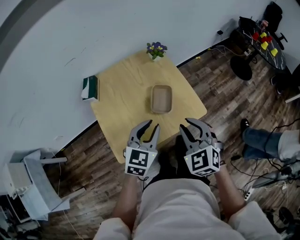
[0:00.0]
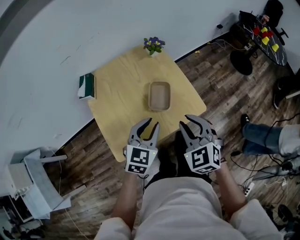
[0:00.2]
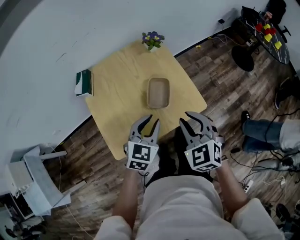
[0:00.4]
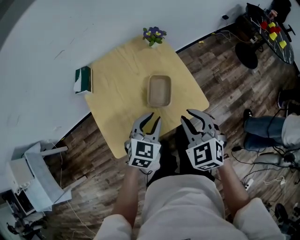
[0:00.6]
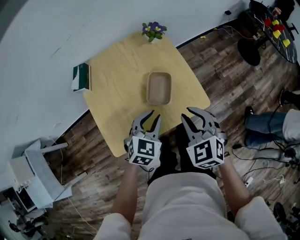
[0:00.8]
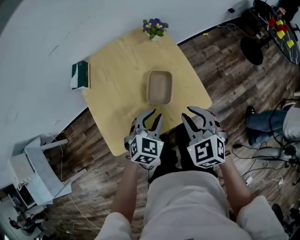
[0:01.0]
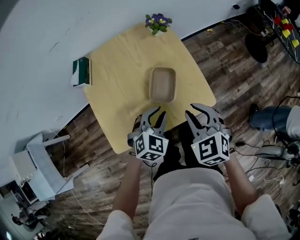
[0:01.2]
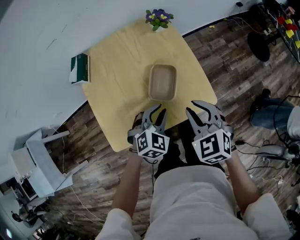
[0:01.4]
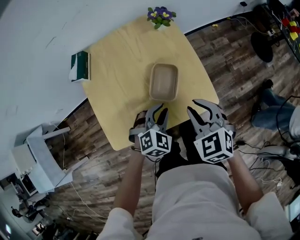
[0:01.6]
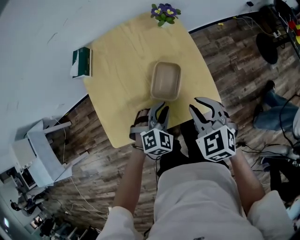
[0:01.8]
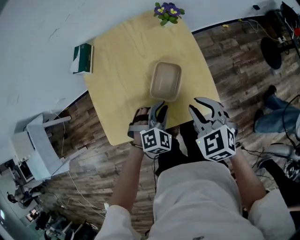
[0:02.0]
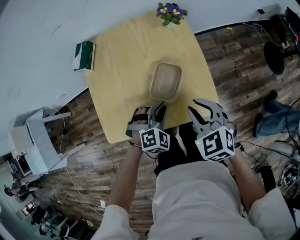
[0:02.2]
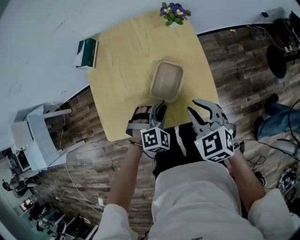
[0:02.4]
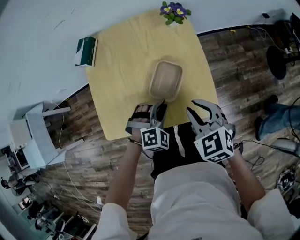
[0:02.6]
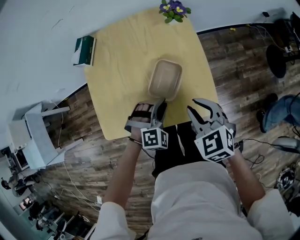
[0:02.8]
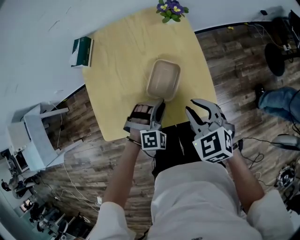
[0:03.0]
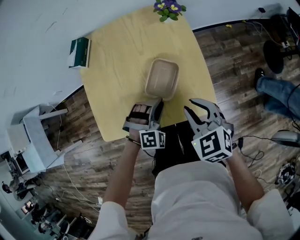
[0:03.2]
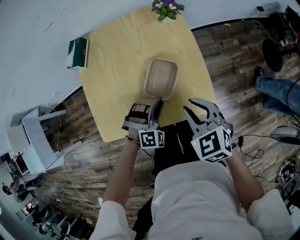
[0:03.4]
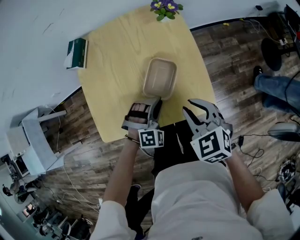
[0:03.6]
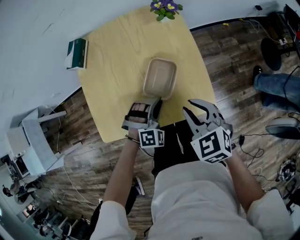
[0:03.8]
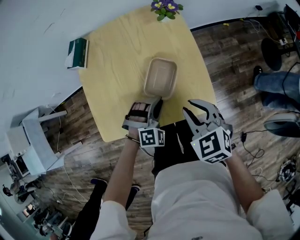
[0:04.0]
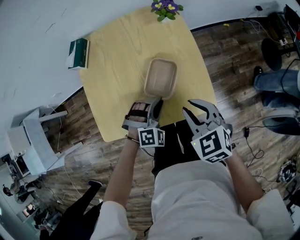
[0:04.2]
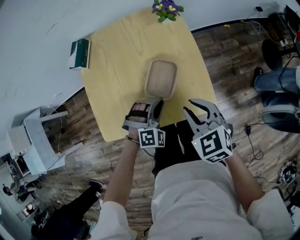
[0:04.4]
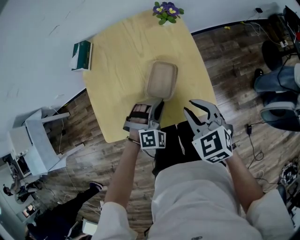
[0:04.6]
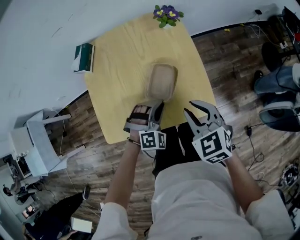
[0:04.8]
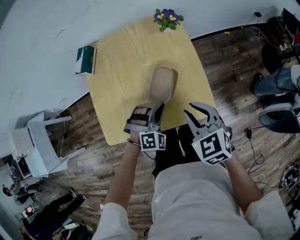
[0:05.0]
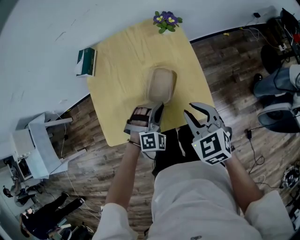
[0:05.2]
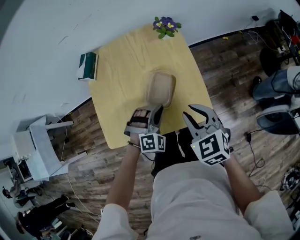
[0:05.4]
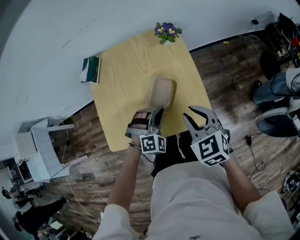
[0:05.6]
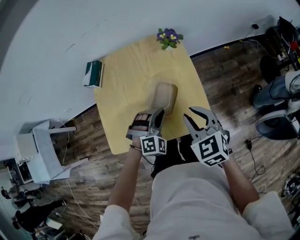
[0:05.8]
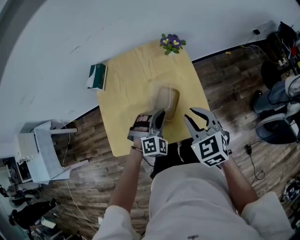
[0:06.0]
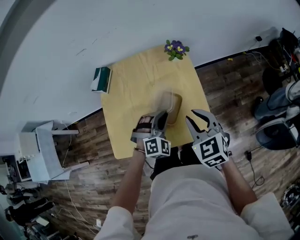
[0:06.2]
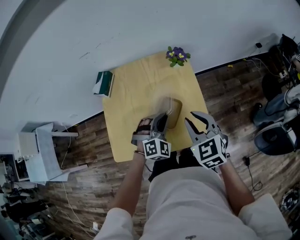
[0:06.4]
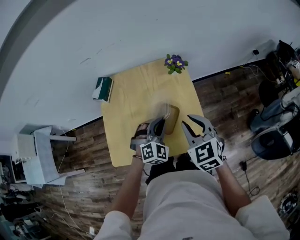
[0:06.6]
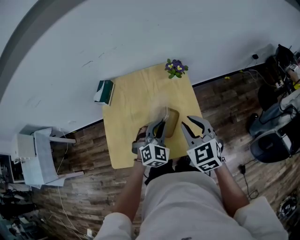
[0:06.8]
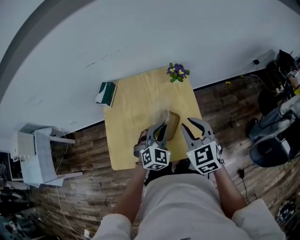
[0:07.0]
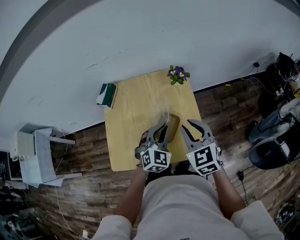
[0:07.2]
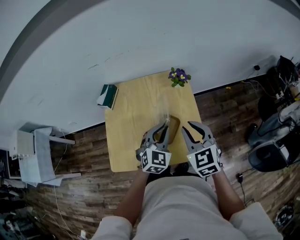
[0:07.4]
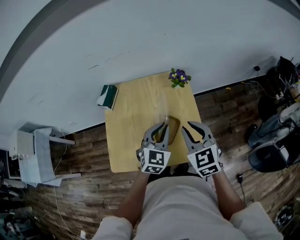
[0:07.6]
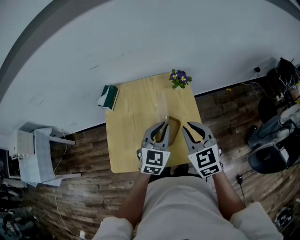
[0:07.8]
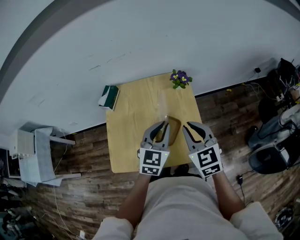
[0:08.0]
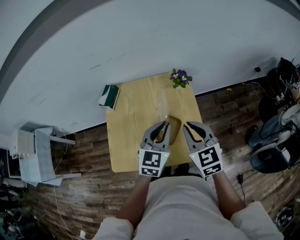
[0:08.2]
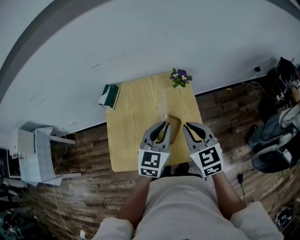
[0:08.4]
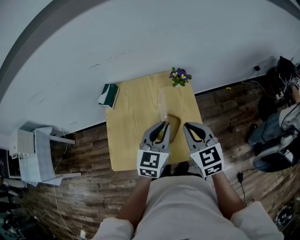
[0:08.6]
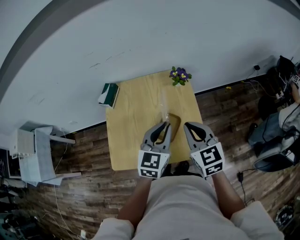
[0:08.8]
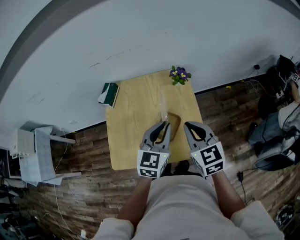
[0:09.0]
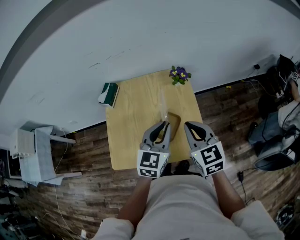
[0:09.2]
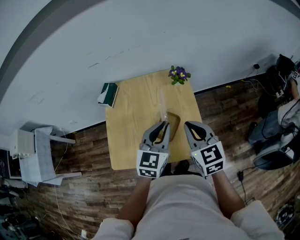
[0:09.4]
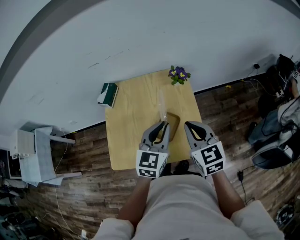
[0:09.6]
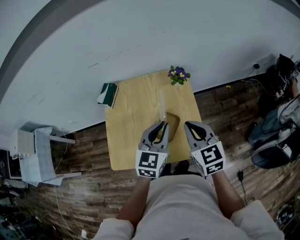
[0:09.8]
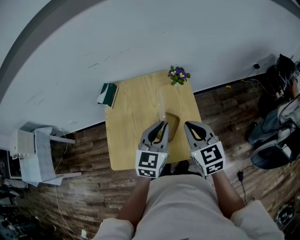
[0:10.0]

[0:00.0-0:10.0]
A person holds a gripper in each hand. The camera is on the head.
0:00.0 to 0:01.4: The left gripper goes about 15 cm downward, and rotates approximately 30 degrees, while the right gripper is displaced downward and forward by approximately 10 cm.
0:01.4 to 0:02.8: The left gripper goes some 5 cm downward, and changes its angle by approximately 30 degrees.
0:02.8 to 0:04.2: The grippers stay close to where they were, moving slightly.
0:04.2 to 0:05.8: The grippers both shift upward by some 5 cm.
0:05.8 to 0:07.2: The right gripper heads upward and forward, covering roughly 10 cm. The left gripper travels upward by approximately 10 cm, and turns by approximately 40 degrees.
0:07.2 to 0:08.6: The left gripper heads upward, covering about 10 cm, and swivels roughly 30 degrees.
0:08.6 to 0:10.0: Neither gripper changes place.

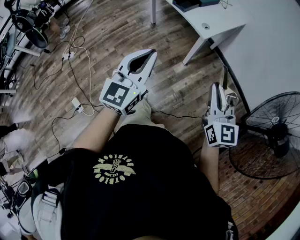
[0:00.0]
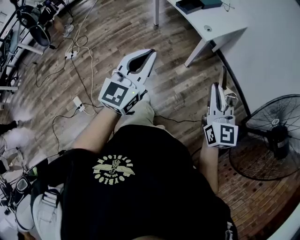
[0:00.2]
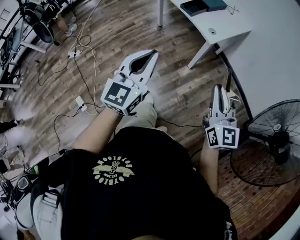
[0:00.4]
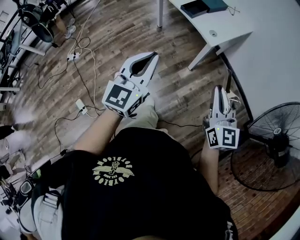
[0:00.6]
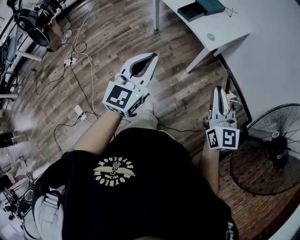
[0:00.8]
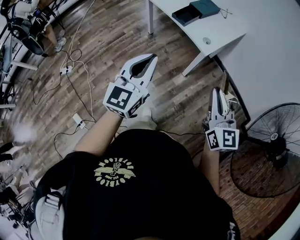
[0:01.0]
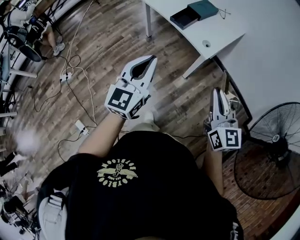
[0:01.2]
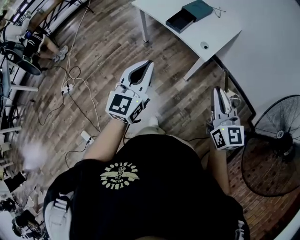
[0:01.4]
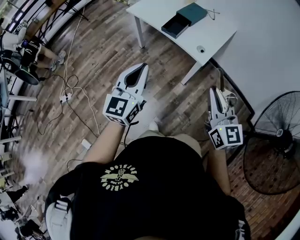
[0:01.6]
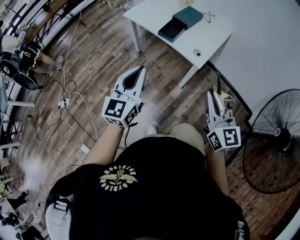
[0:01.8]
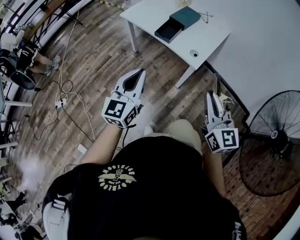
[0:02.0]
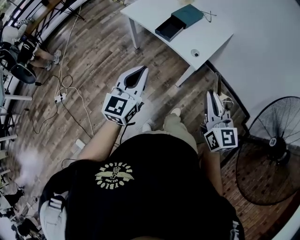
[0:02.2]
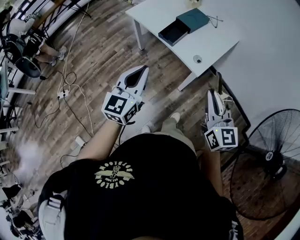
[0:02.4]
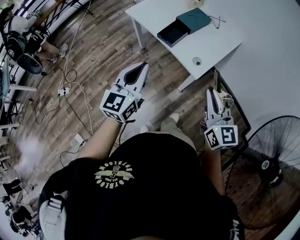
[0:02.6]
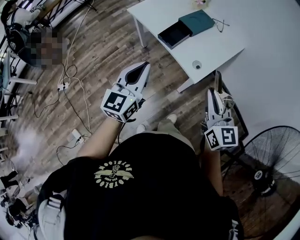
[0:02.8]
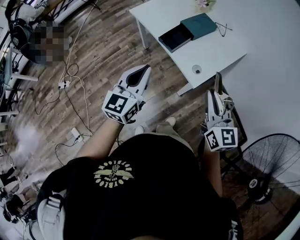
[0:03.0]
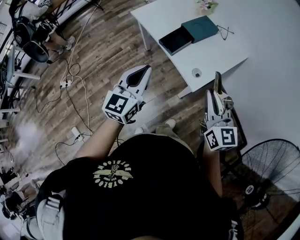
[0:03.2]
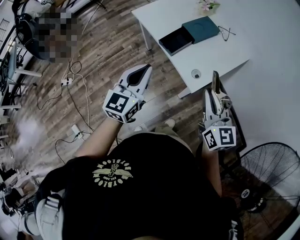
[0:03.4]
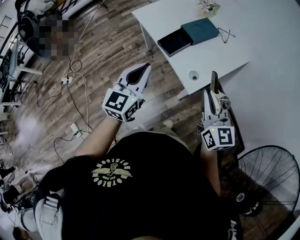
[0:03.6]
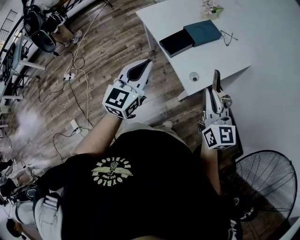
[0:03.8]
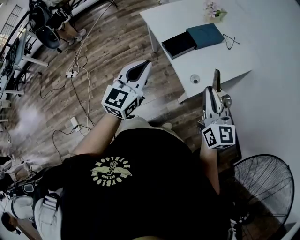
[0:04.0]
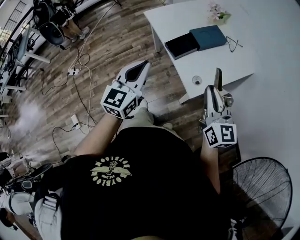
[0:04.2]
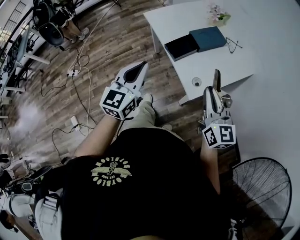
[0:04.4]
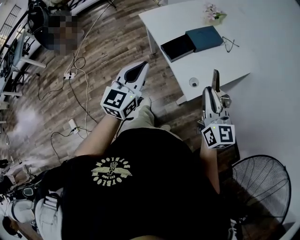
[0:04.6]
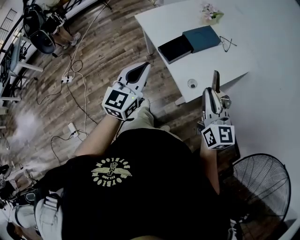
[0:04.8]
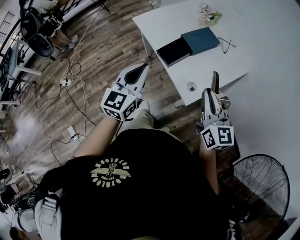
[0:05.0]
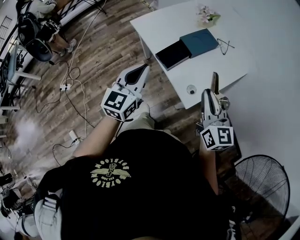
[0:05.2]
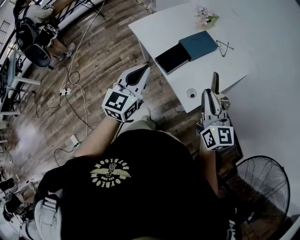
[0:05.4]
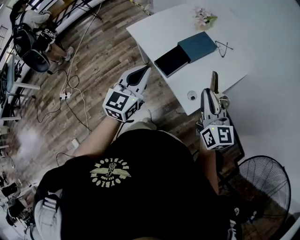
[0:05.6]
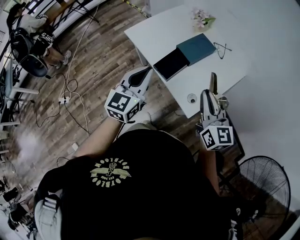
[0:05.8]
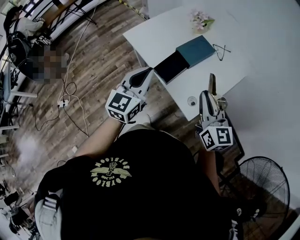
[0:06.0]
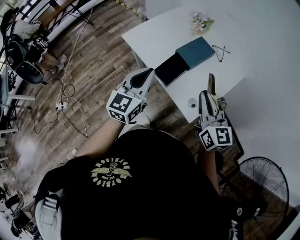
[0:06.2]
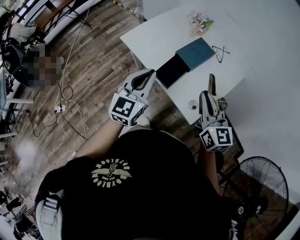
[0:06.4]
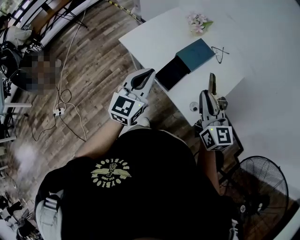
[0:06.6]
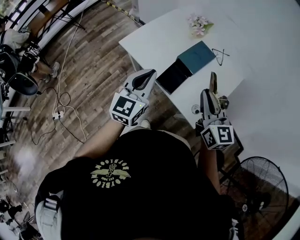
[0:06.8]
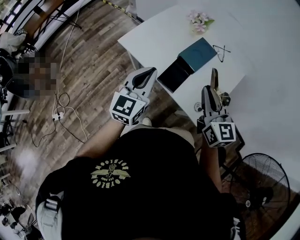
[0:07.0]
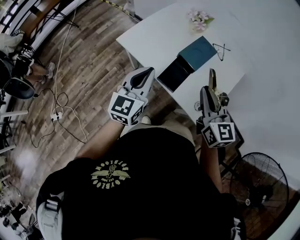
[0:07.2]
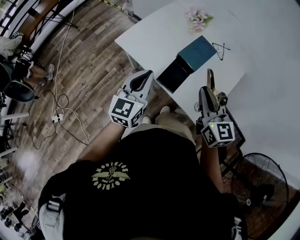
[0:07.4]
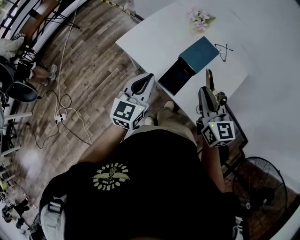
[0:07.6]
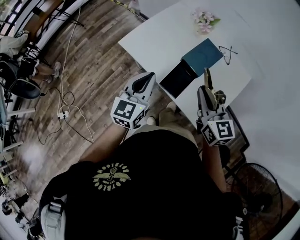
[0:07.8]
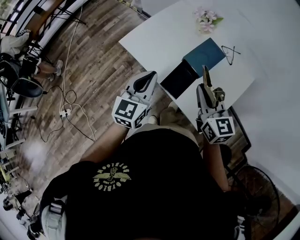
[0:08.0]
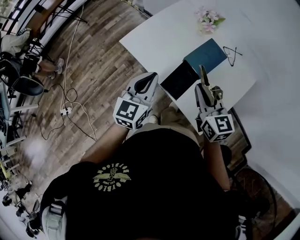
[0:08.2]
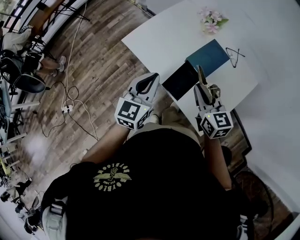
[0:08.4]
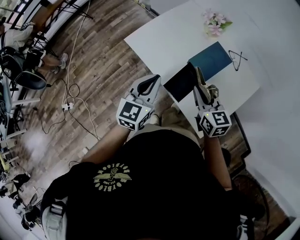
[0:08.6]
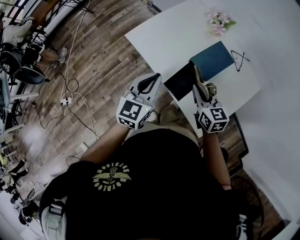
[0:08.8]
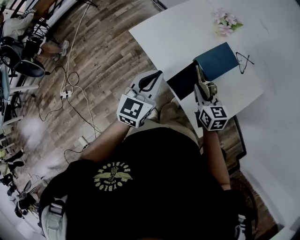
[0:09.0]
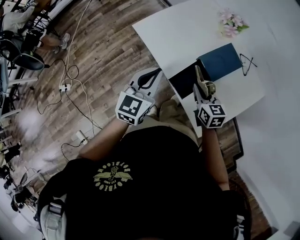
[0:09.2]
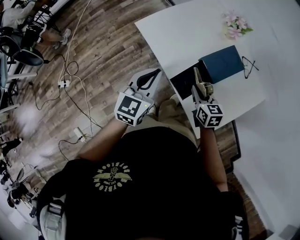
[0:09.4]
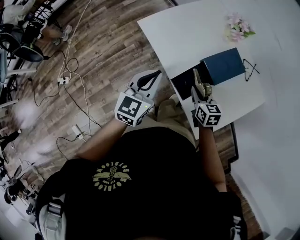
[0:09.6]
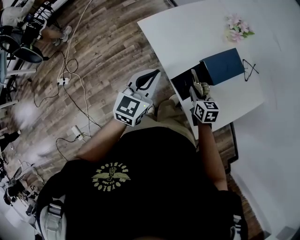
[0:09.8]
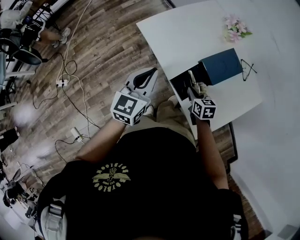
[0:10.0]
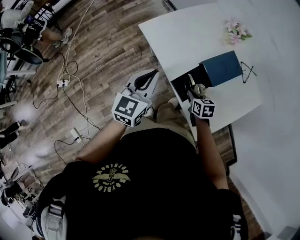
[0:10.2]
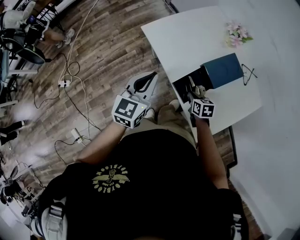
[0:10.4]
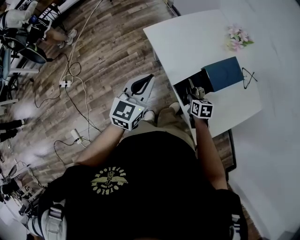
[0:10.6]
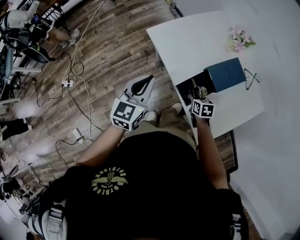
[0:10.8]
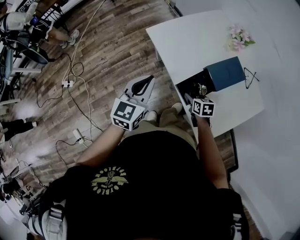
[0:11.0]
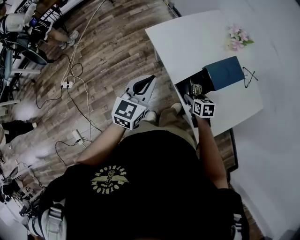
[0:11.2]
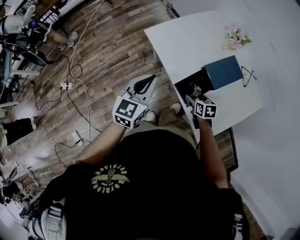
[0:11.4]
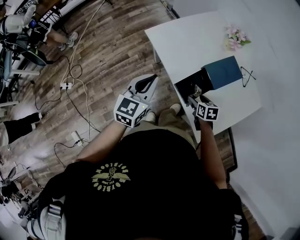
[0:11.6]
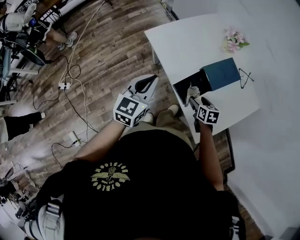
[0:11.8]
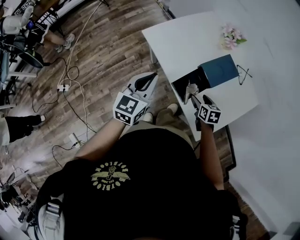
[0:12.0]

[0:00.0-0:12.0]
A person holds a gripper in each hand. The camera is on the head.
0:00.0 to 0:01.6: The grippers both shift forward and to the left by some 25 cm.
0:01.6 to 0:03.0: The two grippers go about 20 cm forward and to the right.
0:03.0 to 0:04.4: The right gripper moves forward, some 5 cm.
0:04.4 to 0:06.0: The two grippers go approximately 15 cm forward.
0:06.0 to 0:07.6: The left gripper heads forward, to the left and downward, covering roughly 15 cm, while the right gripper goes some 15 cm forward and to the left.
0:07.6 to 0:09.0: The right gripper is displaced downward and forward by roughly 20 cm, and swivels some 20 degrees. Meanwhile the left gripper changes place by approximately 5 cm.
0:09.0 to 0:10.4: The left gripper is displaced to the left by approximately 5 cm, while the right gripper travels downward by some 15 cm, and swivels some 20 degrees.
0:10.4 to 0:12.0: The right gripper travels upward by about 5 cm, and opens up.

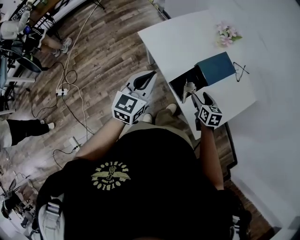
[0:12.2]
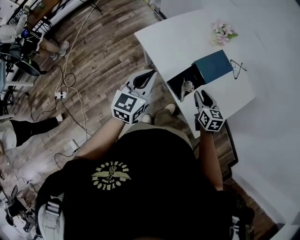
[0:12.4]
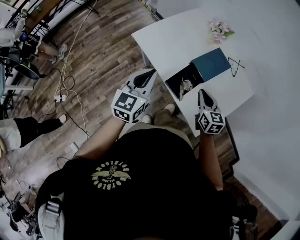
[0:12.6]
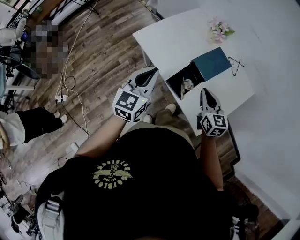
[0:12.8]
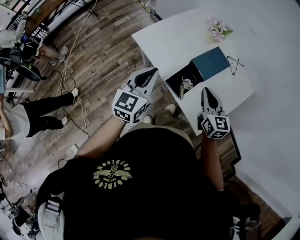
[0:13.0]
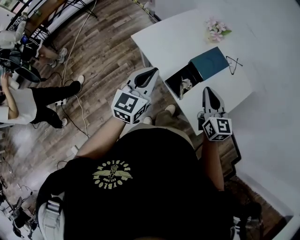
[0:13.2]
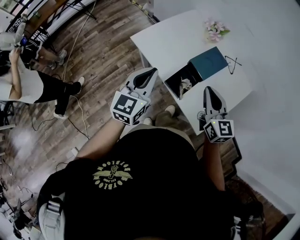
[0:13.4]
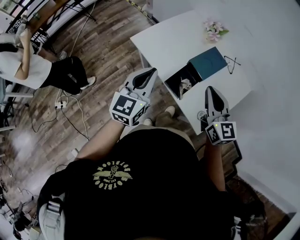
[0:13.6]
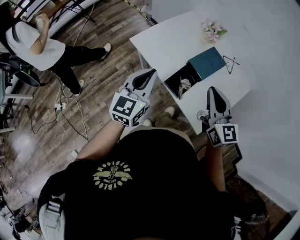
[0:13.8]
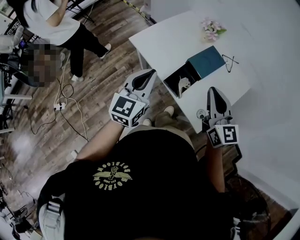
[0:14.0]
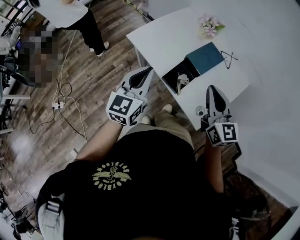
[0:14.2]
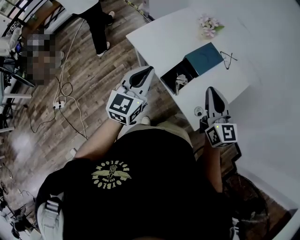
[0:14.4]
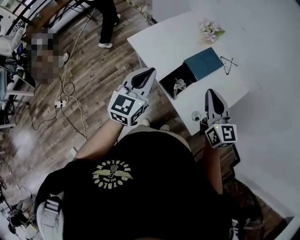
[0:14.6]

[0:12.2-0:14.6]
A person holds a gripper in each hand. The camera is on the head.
0:12.2 to 0:13.4: The right gripper goes roughly 20 cm upward, tips its fingers upward by about 30 degrees, and closes, while the left gripper is displaced upward by about 5 cm.
0:13.4 to 0:14.6: The right gripper ends up some 5 cm from where it was.
